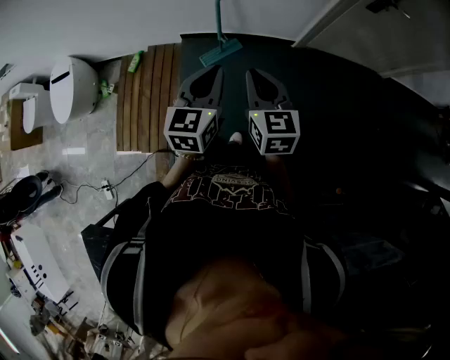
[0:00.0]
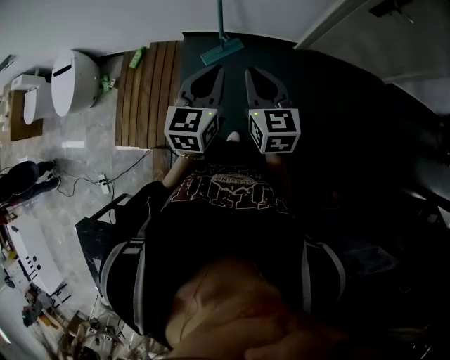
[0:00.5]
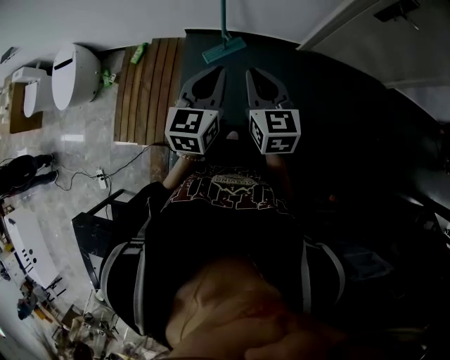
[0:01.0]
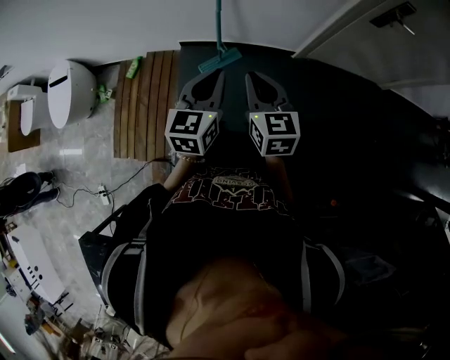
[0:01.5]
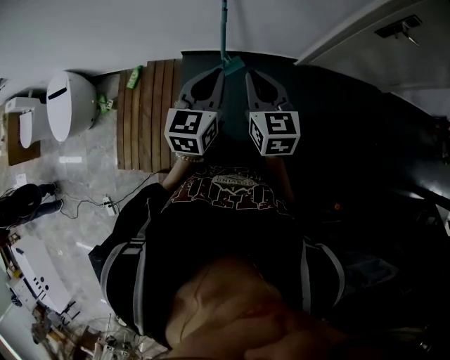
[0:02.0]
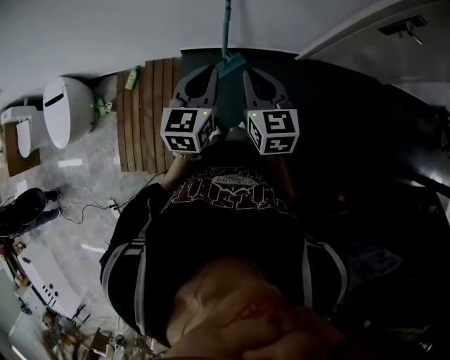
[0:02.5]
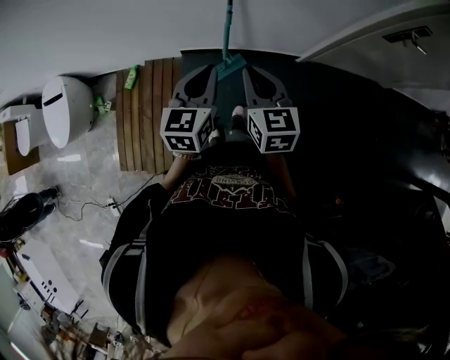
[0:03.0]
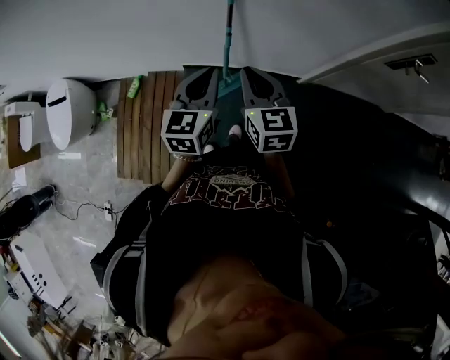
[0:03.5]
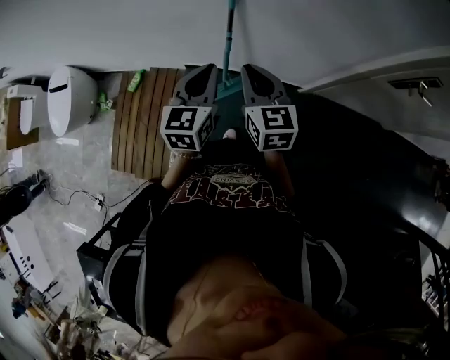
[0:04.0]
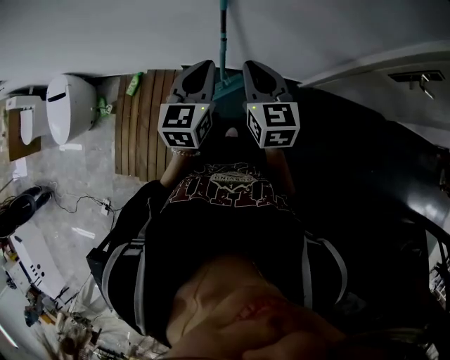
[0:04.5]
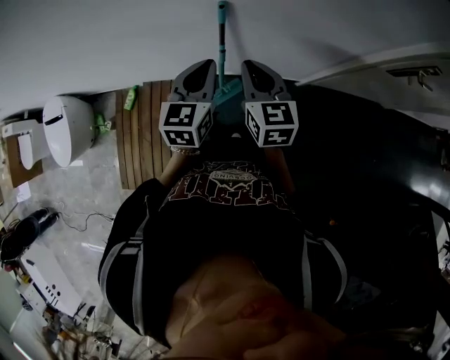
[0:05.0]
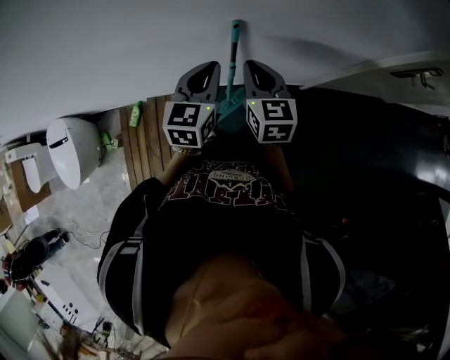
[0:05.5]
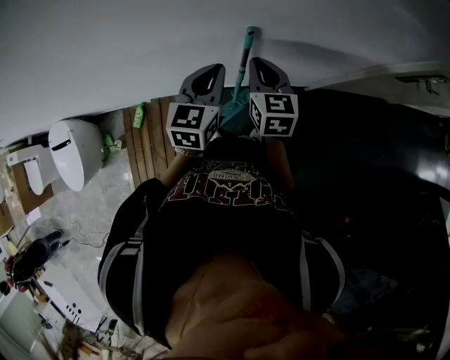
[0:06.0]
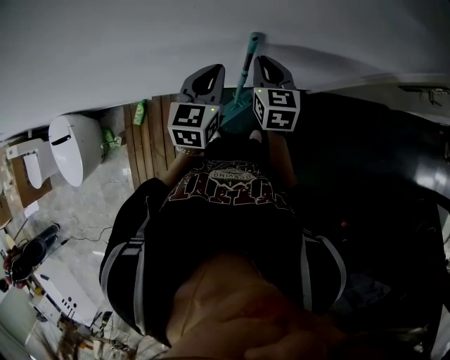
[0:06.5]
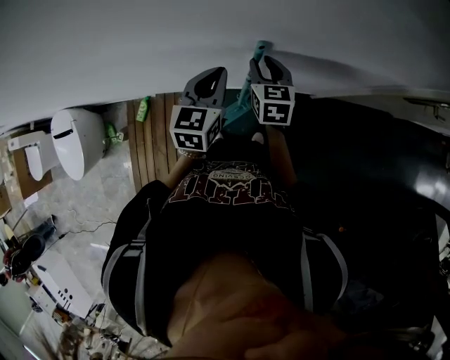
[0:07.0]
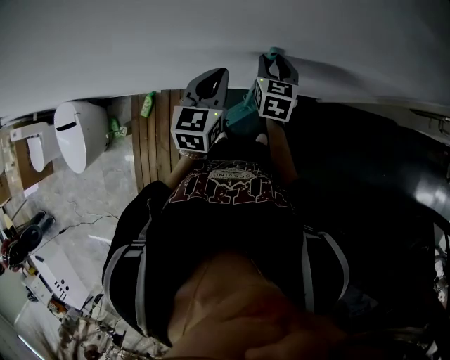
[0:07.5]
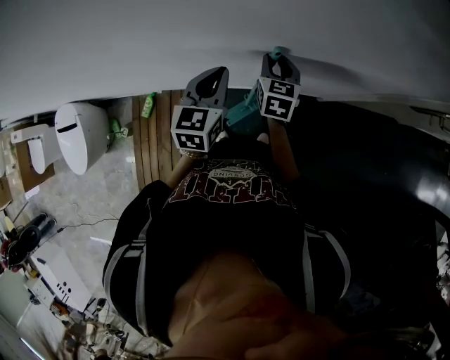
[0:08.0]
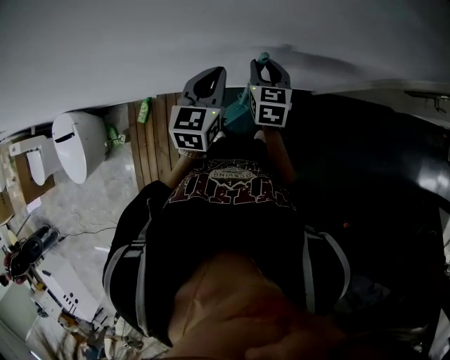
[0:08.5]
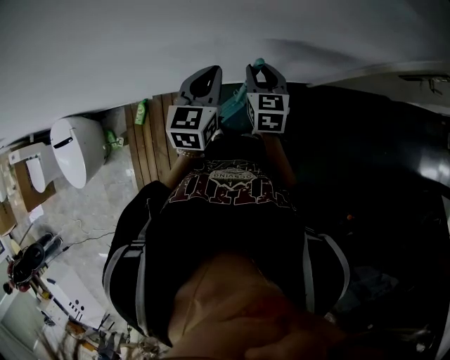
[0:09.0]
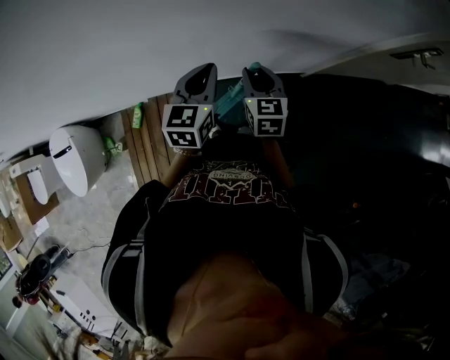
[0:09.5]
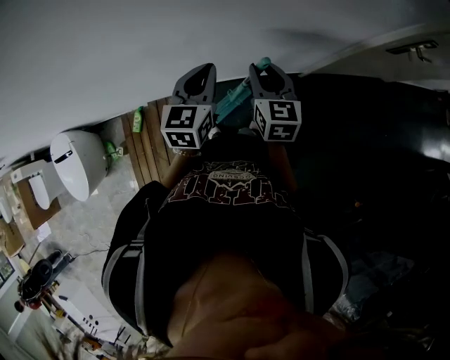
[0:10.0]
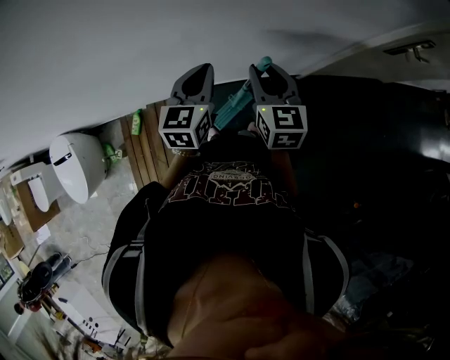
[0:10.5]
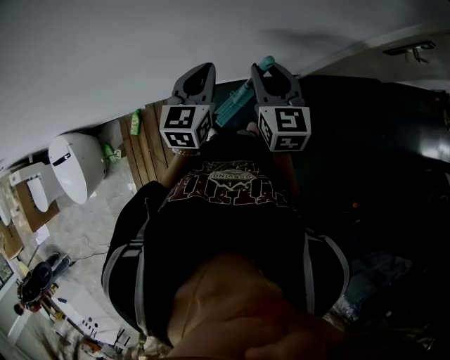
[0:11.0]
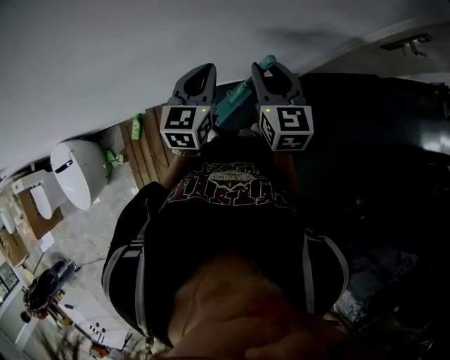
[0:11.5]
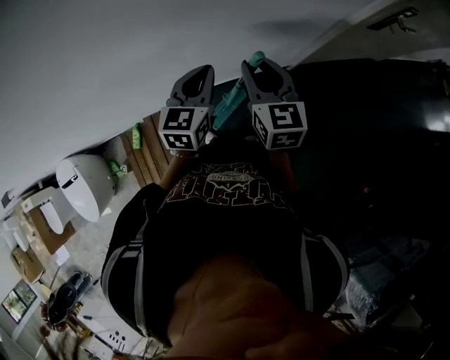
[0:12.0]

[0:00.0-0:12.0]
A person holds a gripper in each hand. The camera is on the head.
0:00.0 to 0:02.0: Both grippers move forward, about 15 cm.
0:02.0 to 0:04.0: Both grippers move forward, some 20 cm.
0:04.0 to 0:06.0: Both grippers travel together forward and to the left, approximately 20 cm.
0:06.0 to 0:08.0: The right gripper is displaced forward and downward by about 10 cm, and opens; the left gripper shifts by roughly 5 cm.
0:08.0 to 0:10.0: The right gripper moves backward, to the right and upward, about 20 cm, while the left gripper travels backward and to the right by some 10 cm.
0:10.0 to 0:12.0: The left gripper shifts roughly 10 cm to the right. The right gripper shifts approximately 10 cm upward and to the right.

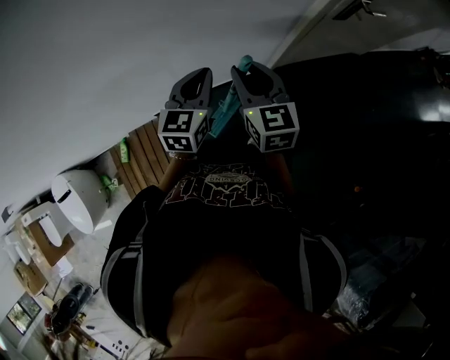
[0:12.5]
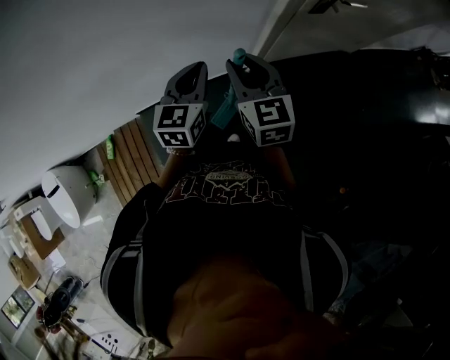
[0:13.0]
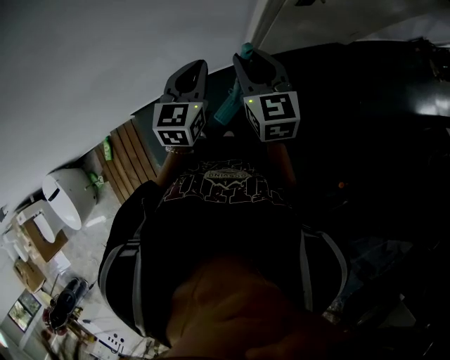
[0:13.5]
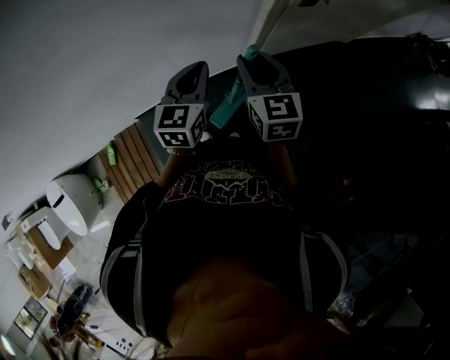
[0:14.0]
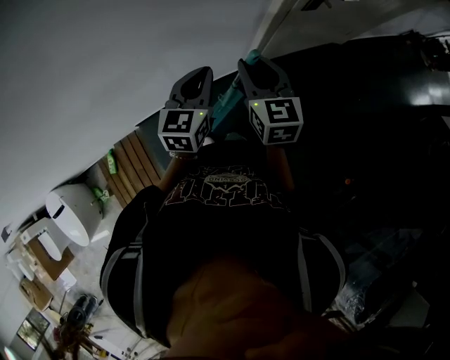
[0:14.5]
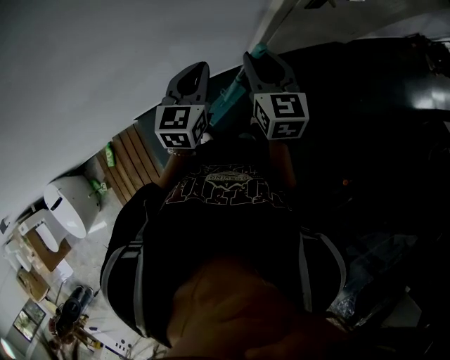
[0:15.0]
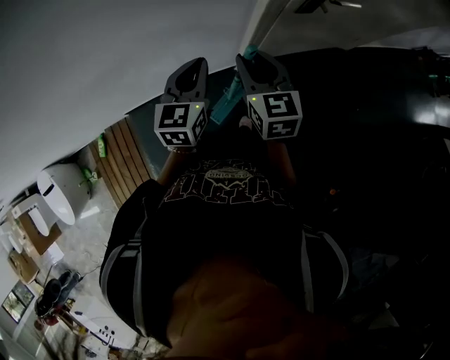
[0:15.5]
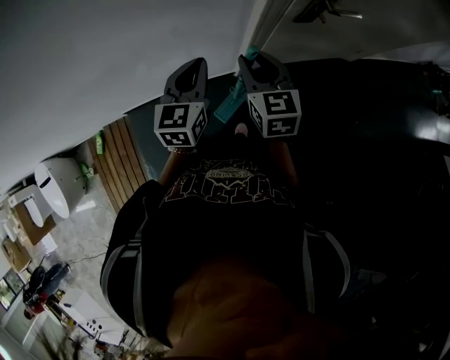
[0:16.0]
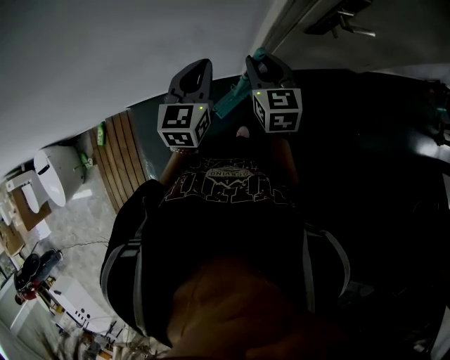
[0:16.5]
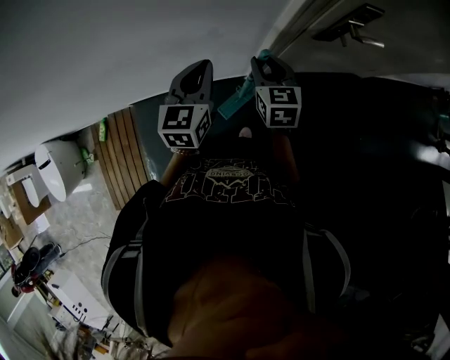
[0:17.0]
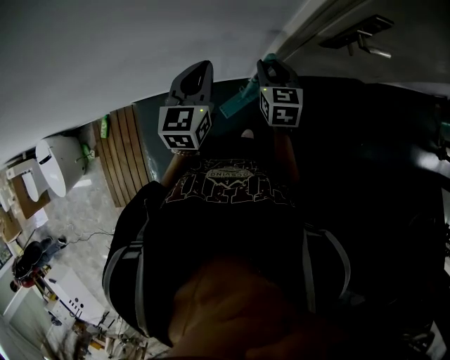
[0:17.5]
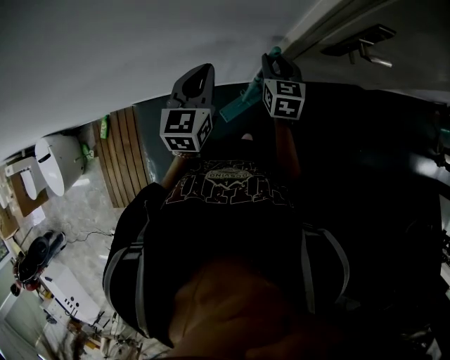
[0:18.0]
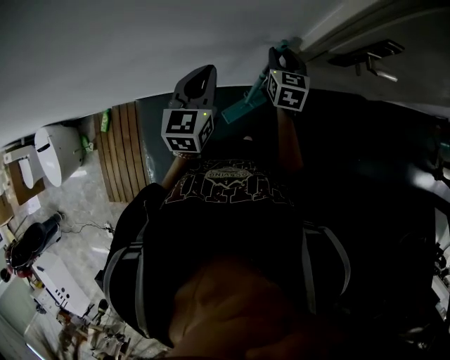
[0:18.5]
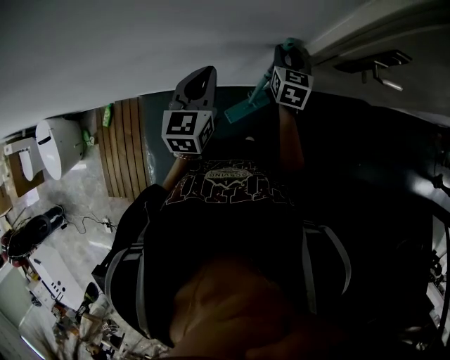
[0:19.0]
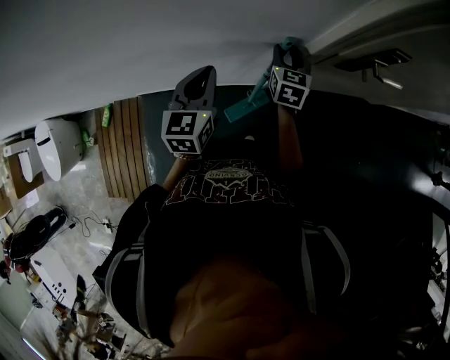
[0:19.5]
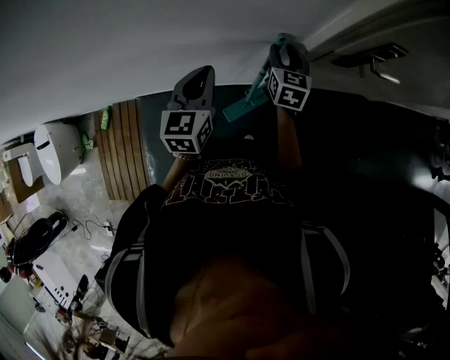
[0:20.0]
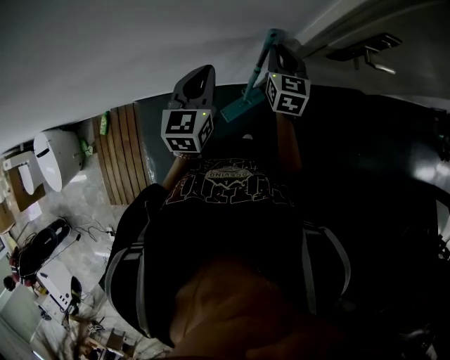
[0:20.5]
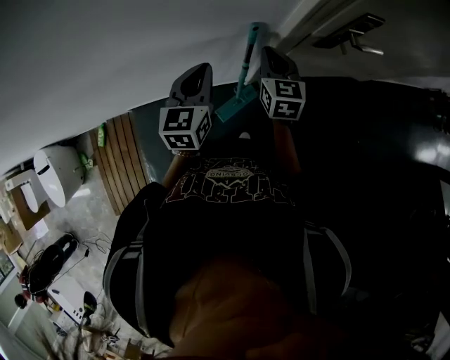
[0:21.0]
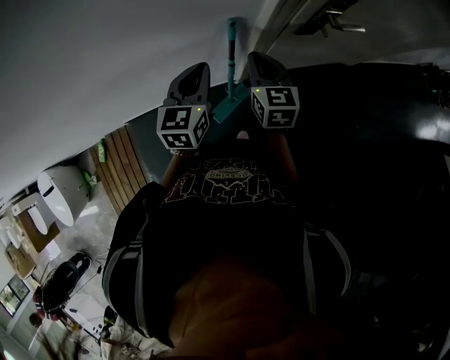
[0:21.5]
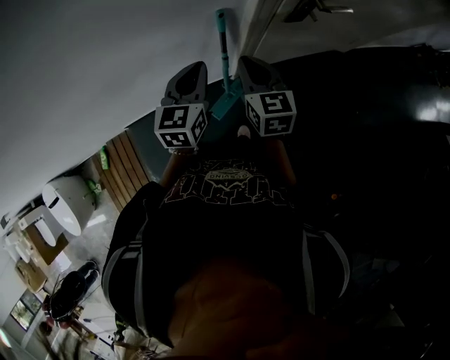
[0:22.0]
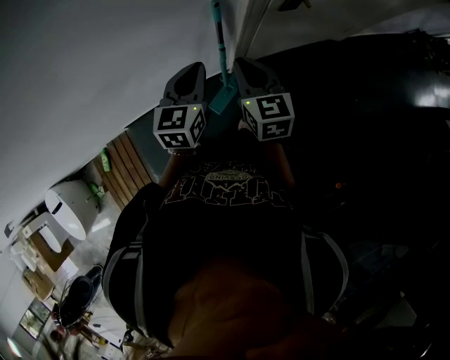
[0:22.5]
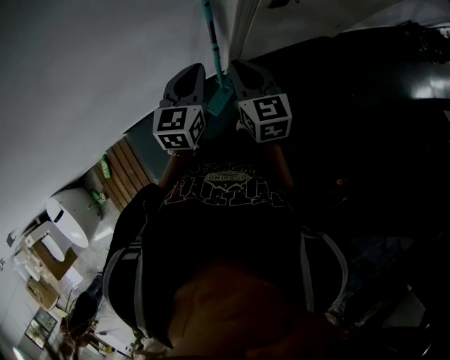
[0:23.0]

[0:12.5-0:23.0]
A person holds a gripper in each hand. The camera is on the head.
0:12.5 to 0:14.5: Both grippers travel together to the right, roughly 15 cm.
0:14.5 to 0:16.5: The right gripper goes some 20 cm to the right, forward and downward. The left gripper is displaced to the right and forward by about 15 cm.
0:16.5 to 0:19.0: The right gripper shifts roughly 15 cm forward and downward. The left gripper moves to the left, roughly 5 cm.
0:19.0 to 0:21.0: The right gripper goes about 10 cm backward and upward, and closes.
0:21.0 to 0:23.0: The right gripper moves backward, about 15 cm; the left gripper travels backward and to the right by approximately 10 cm.

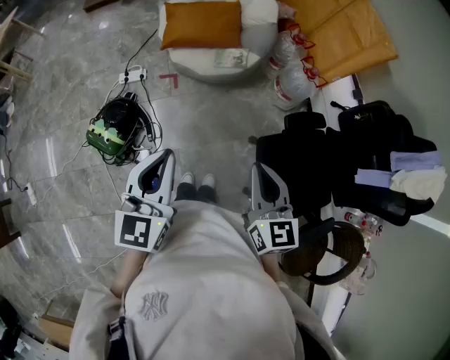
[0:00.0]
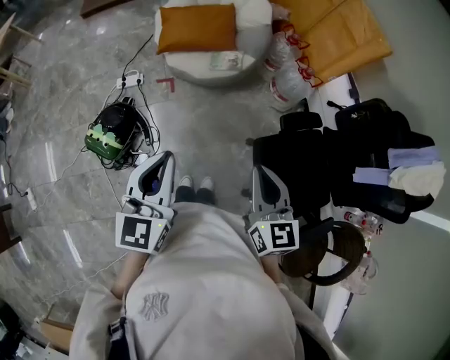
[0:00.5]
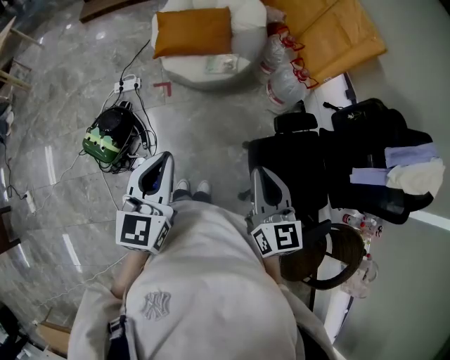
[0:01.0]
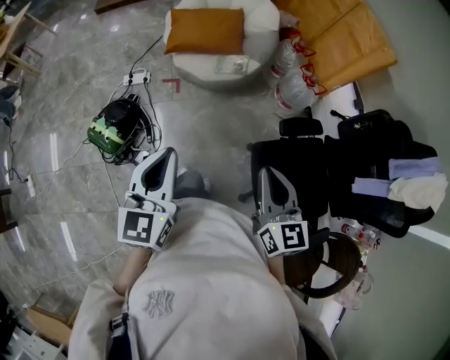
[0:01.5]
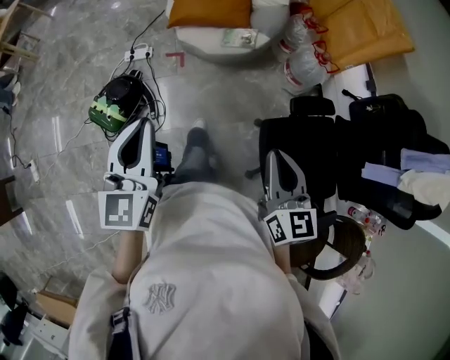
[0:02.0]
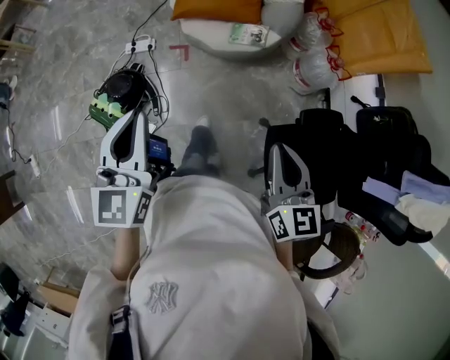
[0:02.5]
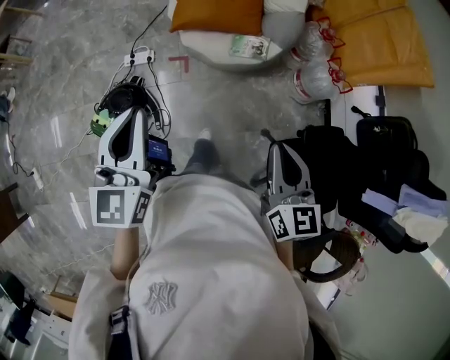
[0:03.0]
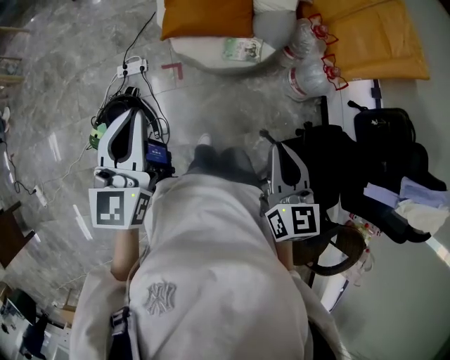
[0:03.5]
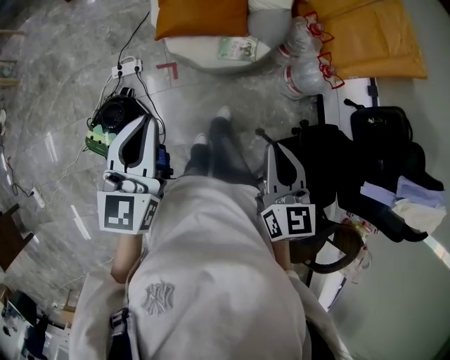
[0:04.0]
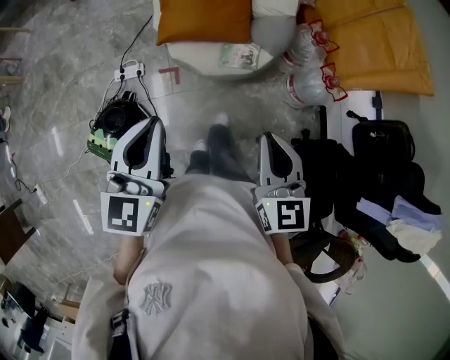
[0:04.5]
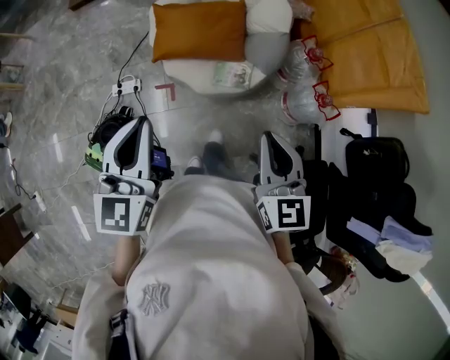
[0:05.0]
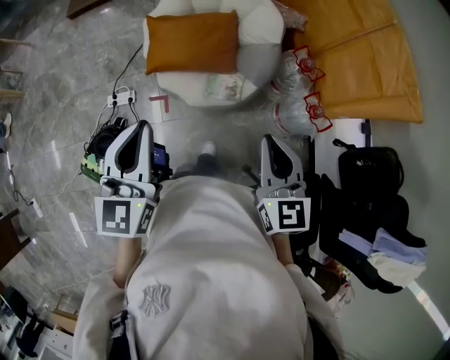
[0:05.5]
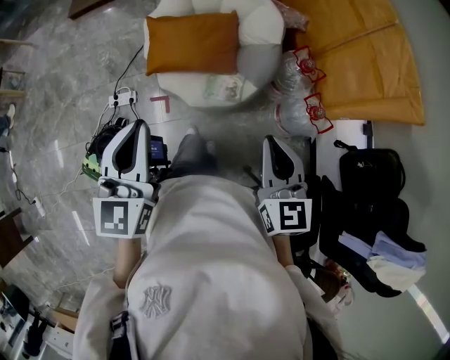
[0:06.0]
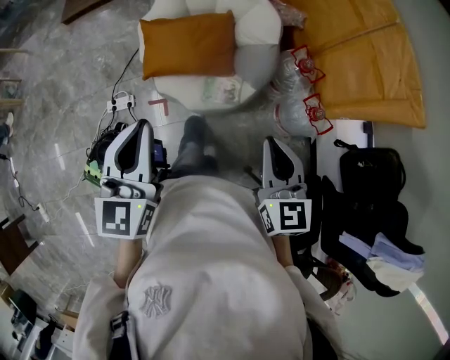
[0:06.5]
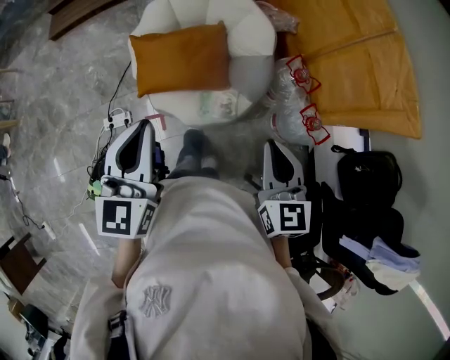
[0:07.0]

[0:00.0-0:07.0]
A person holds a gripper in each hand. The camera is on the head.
0:00.0 to 0:02.0: The right gripper travels to the right by roughly 5 cm.
0:02.0 to 0:03.5: The grippers both shift forward by approximately 25 cm.
0:03.5 to 0:05.0: The right gripper travels forward by roughly 15 cm. Meanwhile the left gripper goes roughly 15 cm forward and to the right.
0:05.0 to 0:07.0: The two grippers go roughly 15 cm forward.
